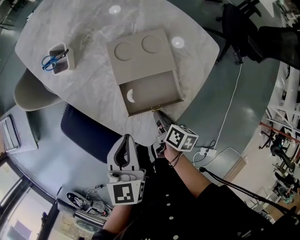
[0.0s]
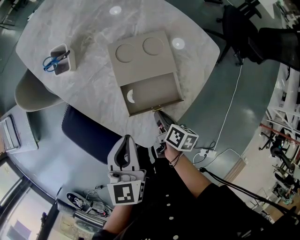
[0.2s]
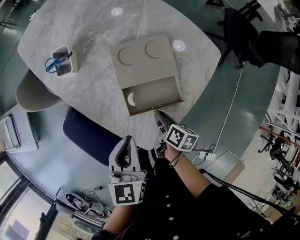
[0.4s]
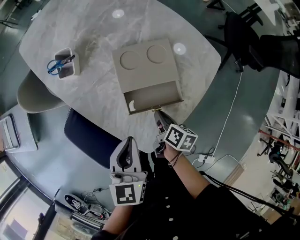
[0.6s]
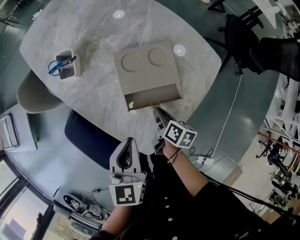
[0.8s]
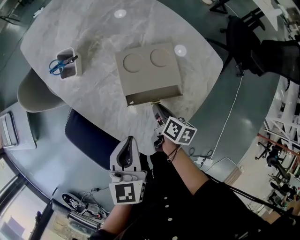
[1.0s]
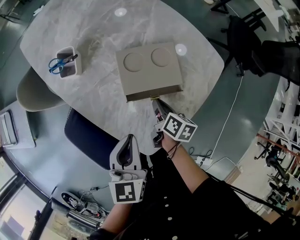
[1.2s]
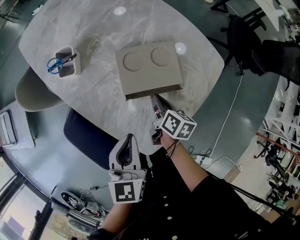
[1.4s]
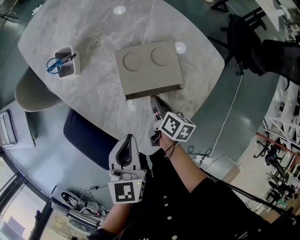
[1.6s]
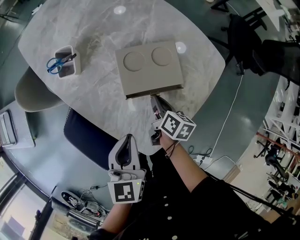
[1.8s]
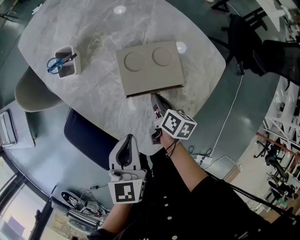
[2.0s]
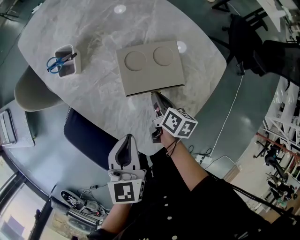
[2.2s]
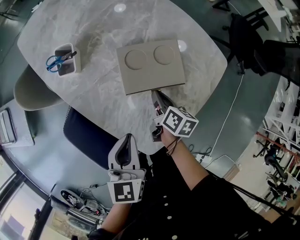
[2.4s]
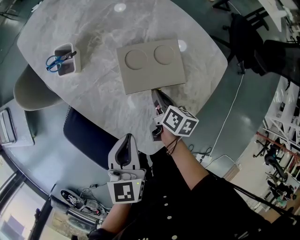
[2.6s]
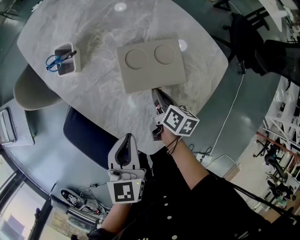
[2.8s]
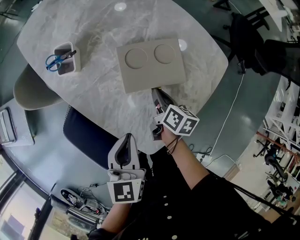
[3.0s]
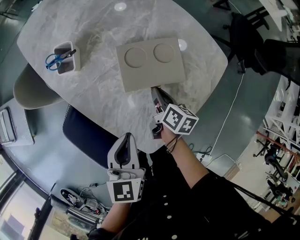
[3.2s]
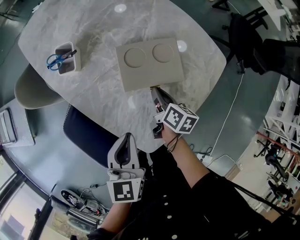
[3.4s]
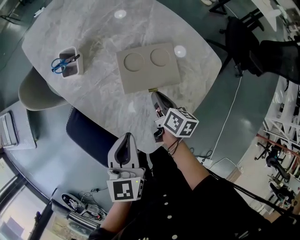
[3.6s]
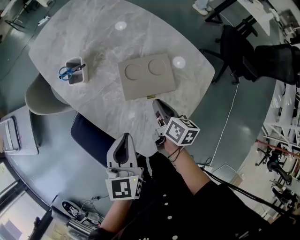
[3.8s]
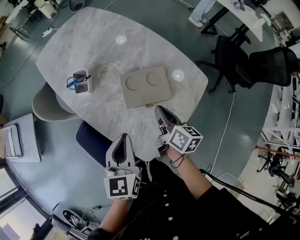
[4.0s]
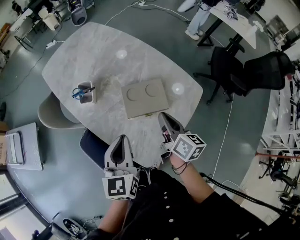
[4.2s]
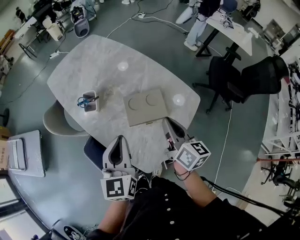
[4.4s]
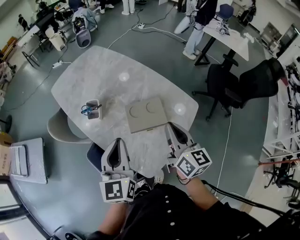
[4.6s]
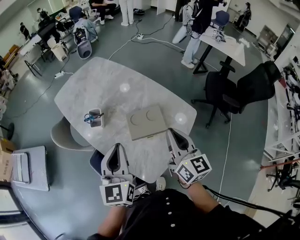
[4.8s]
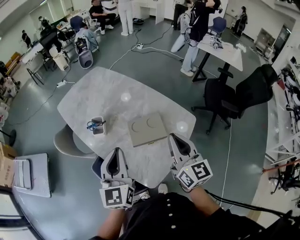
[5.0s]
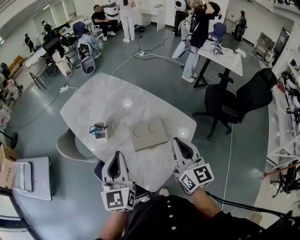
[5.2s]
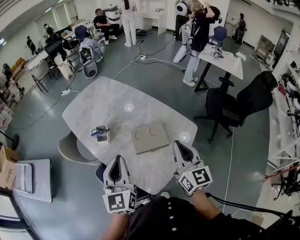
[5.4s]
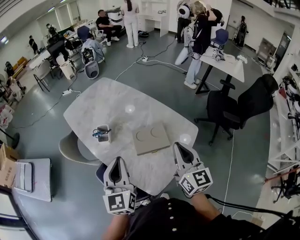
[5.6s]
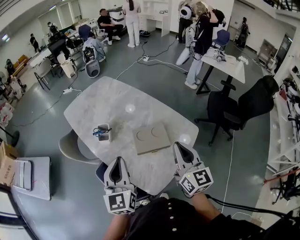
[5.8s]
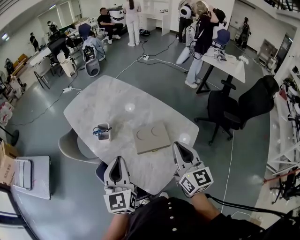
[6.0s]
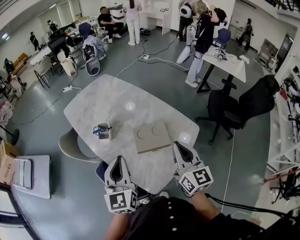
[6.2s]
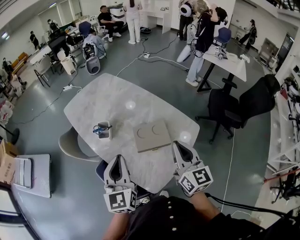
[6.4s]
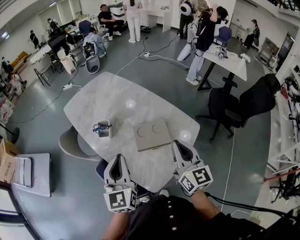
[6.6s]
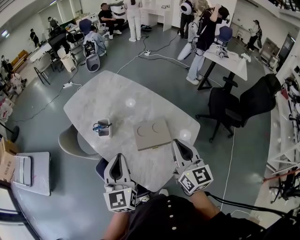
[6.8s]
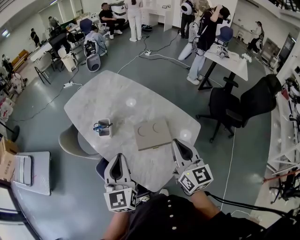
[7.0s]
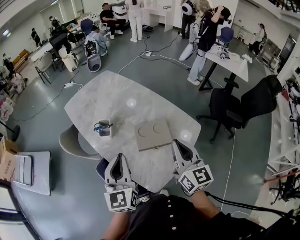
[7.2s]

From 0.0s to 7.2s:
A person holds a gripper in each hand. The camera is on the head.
From 0.0s to 1.4s: The right gripper heads forward, covering some 10 cm.
From 1.4s to 2.8s: The grippers move only a little.
From 2.8s to 4.4s: The left gripper travels upward by approximately 20 cm. Meanwhile the right gripper shifts roughly 30 cm upward, and turns by roughly 30 degrees.
From 4.4s to 5.8s: The left gripper moves upward, about 5 cm, while the right gripper is displaced upward and backward by about 15 cm, and swivels about 30 degrees.
From 5.8s to 7.2s: There are only small adjustments of the grippers.

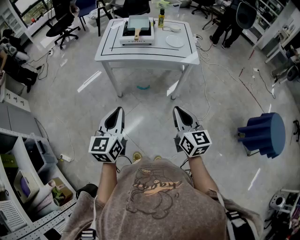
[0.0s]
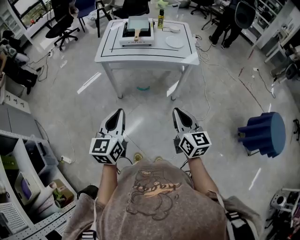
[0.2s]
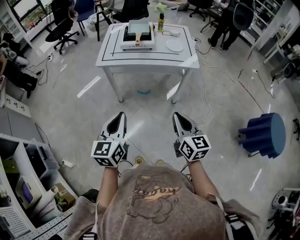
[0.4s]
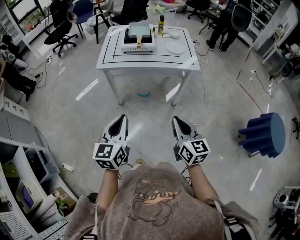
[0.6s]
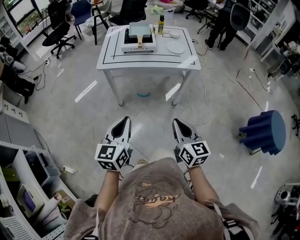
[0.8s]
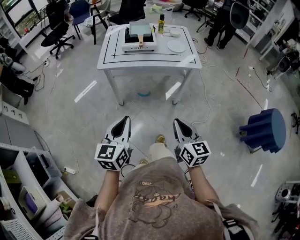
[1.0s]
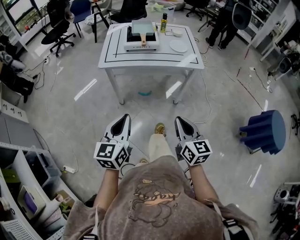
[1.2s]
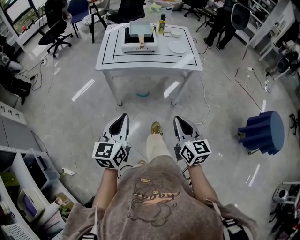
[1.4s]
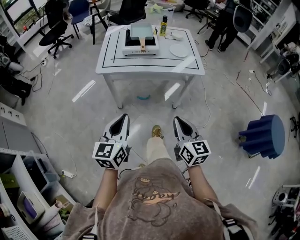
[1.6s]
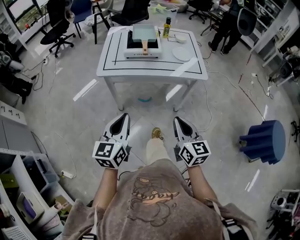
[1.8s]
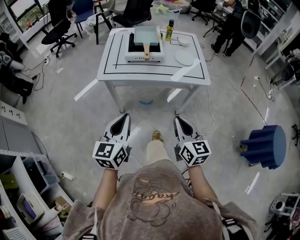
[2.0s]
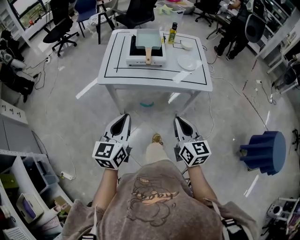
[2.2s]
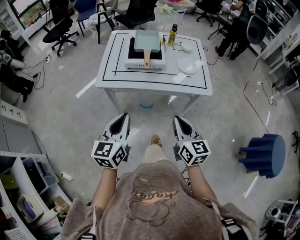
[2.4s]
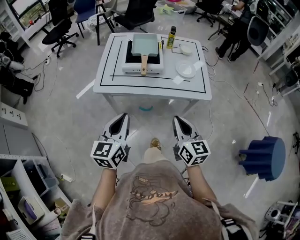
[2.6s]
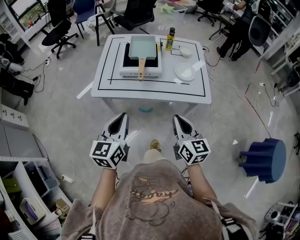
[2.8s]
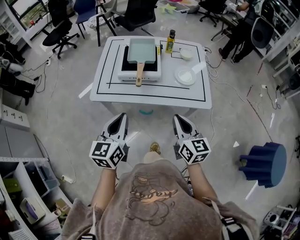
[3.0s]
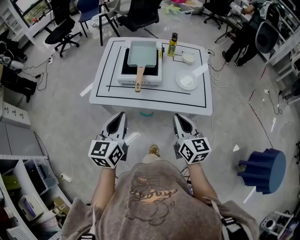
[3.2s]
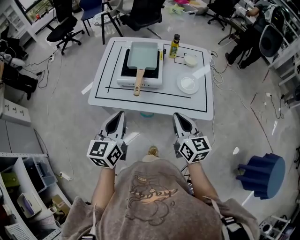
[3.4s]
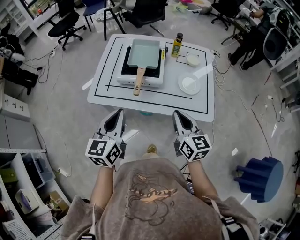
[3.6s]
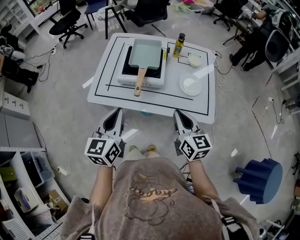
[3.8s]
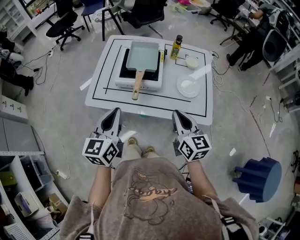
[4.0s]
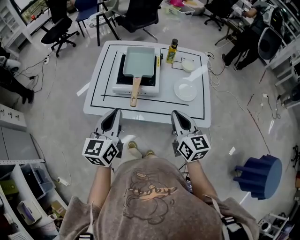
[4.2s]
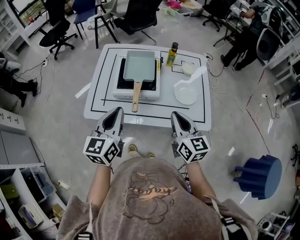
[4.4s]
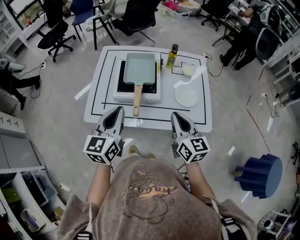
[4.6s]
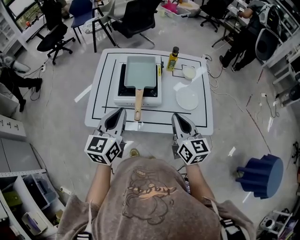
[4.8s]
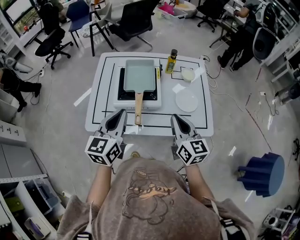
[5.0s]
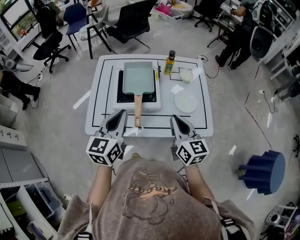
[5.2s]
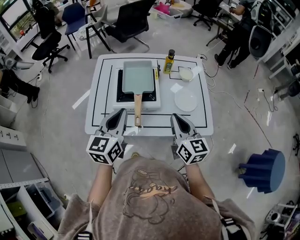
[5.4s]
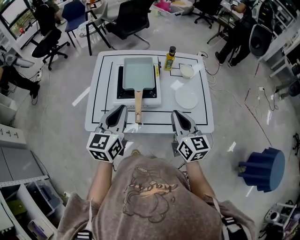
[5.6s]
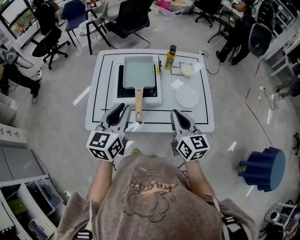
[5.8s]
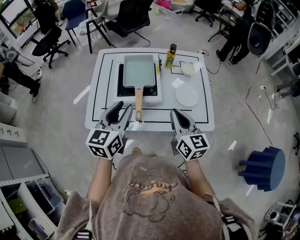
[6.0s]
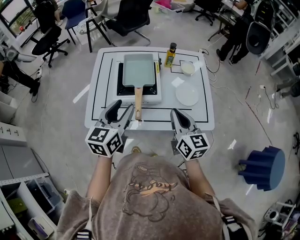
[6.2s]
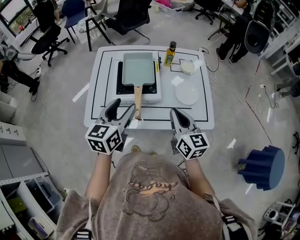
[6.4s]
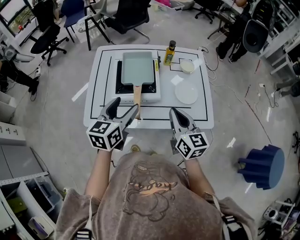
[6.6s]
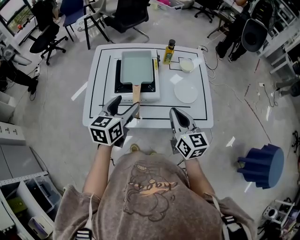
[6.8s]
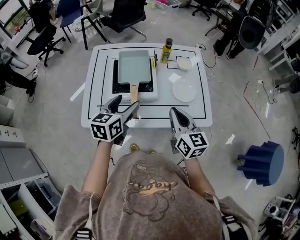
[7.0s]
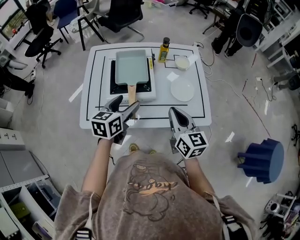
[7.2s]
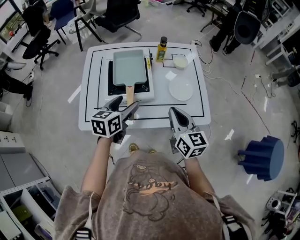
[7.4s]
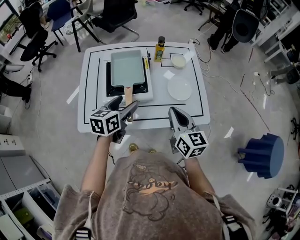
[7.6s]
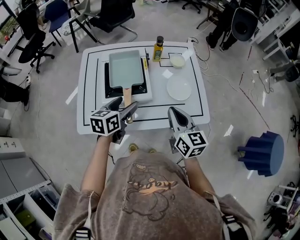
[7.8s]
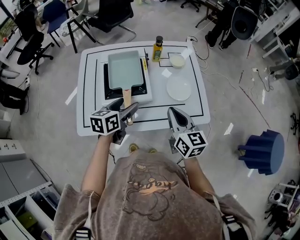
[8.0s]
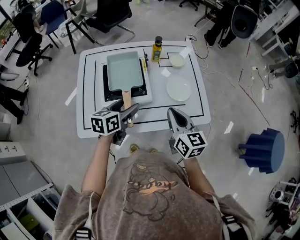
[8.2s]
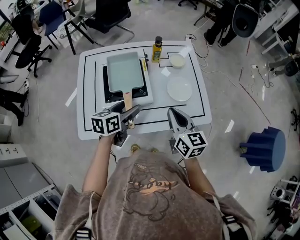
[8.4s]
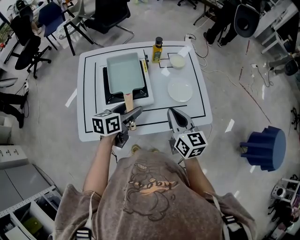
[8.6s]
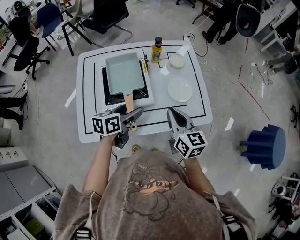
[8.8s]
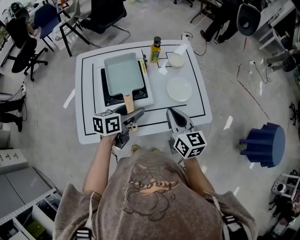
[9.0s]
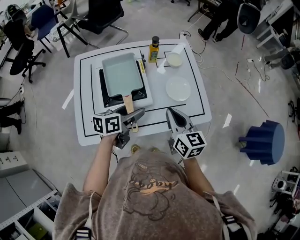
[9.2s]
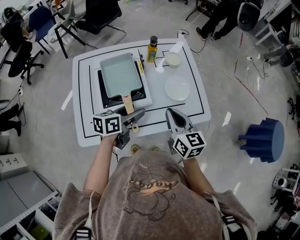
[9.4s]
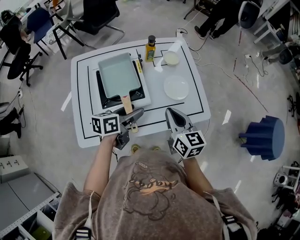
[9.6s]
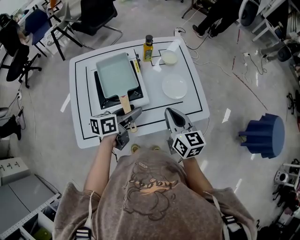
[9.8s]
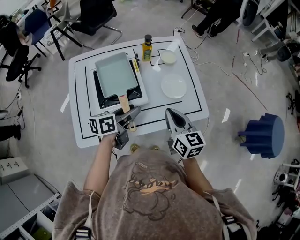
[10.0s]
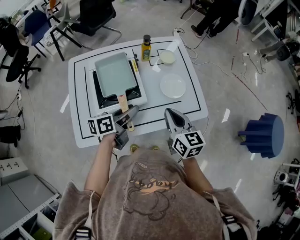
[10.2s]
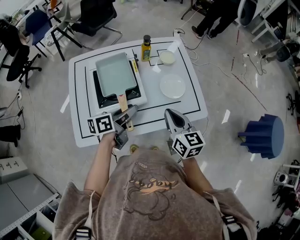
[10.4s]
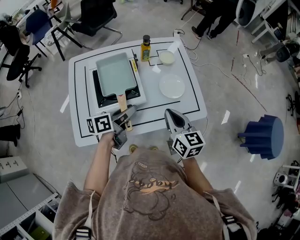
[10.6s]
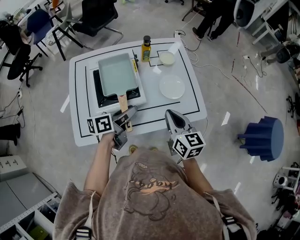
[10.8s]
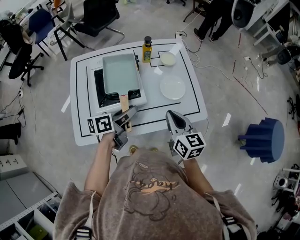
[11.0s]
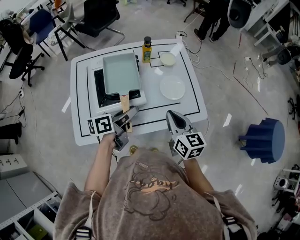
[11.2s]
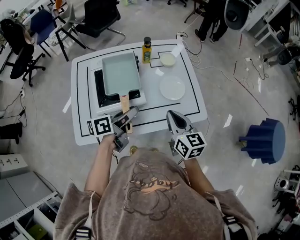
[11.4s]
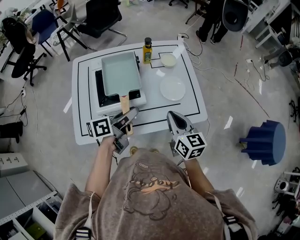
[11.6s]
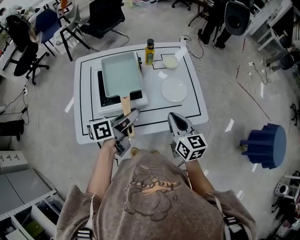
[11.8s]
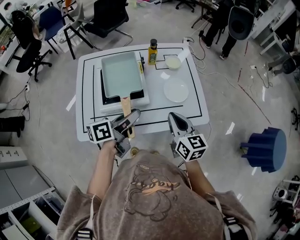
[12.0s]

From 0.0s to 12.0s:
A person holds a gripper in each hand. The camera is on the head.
From 0.0s to 1.6s: The right gripper goes approximately 10 cm to the left and forward. The left gripper goes roughly 5 cm forward.
From 1.6s to 3.0s: The grippers both shift forward by about 25 cm.
From 3.0s to 4.4s: Both grippers move forward, some 15 cm.
From 4.4s to 6.0s: The left gripper is displaced forward by roughly 5 cm, and opens its fingers.
From 6.0s to 7.6s: The left gripper heads downward and forward, covering approximately 10 cm, turns by some 20 degrees, and opens.
From 7.6s to 9.0s: The left gripper changes its angle by approximately 20 degrees.
From 9.0s to 10.4s: The left gripper closes its fingers.
From 10.4s to 12.0s: The left gripper goes some 5 cm upward.

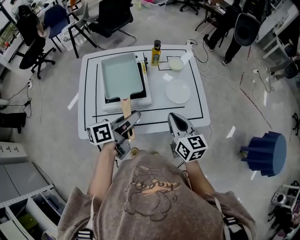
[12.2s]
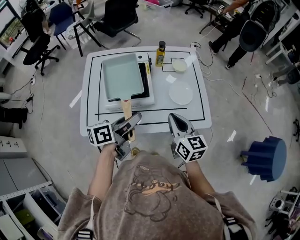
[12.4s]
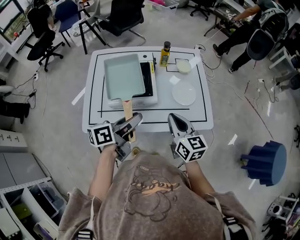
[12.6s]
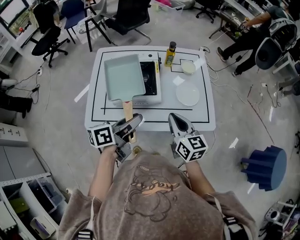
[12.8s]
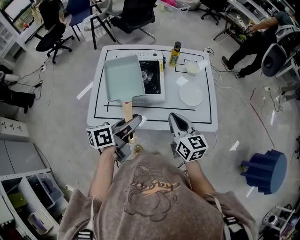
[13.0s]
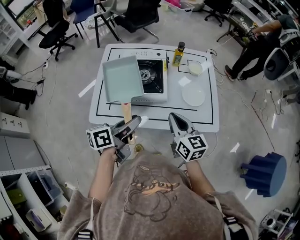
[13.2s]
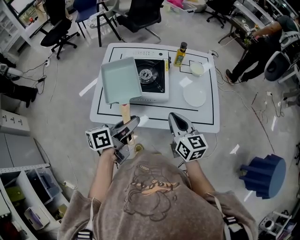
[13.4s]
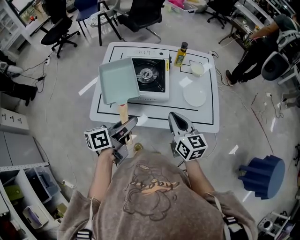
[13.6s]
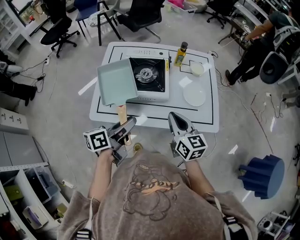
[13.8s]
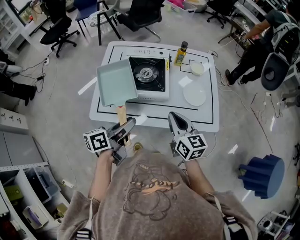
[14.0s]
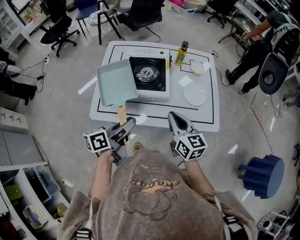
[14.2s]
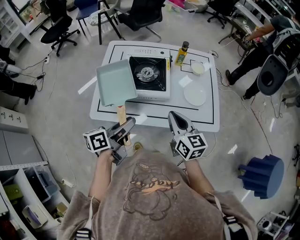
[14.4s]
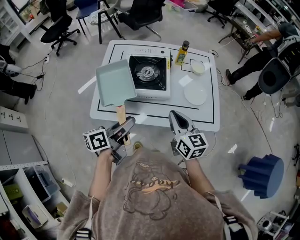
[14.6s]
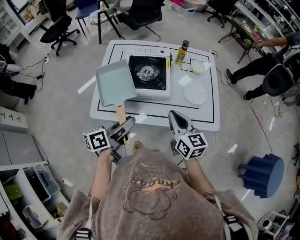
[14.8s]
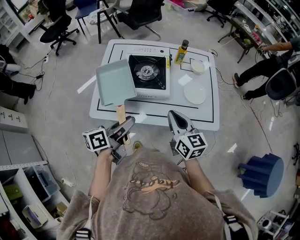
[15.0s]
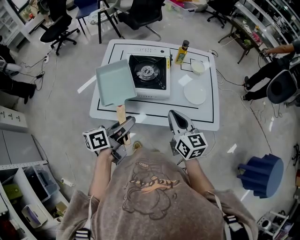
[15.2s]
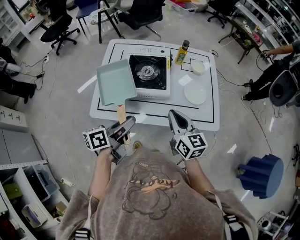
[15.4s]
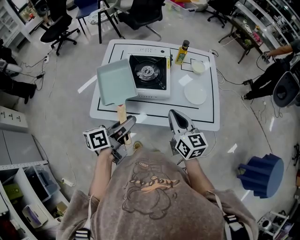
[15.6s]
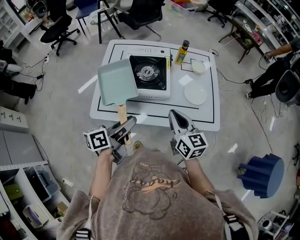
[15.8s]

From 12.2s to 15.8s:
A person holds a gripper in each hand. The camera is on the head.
From 12.2s to 14.0s: The right gripper goes about 5 cm to the left; the left gripper goes approximately 10 cm backward and to the left.
From 14.0s to 15.8s: The grippers move only a little.

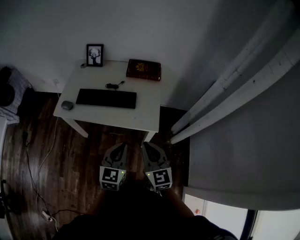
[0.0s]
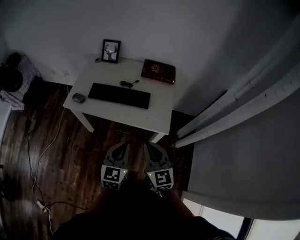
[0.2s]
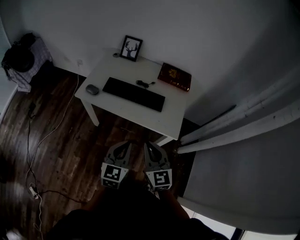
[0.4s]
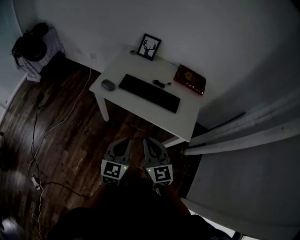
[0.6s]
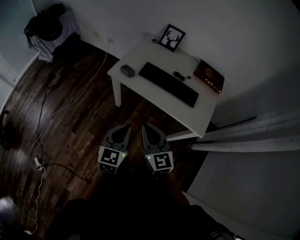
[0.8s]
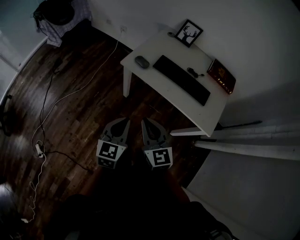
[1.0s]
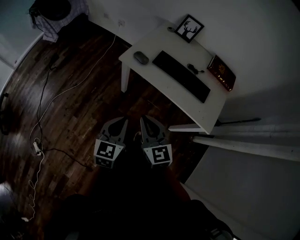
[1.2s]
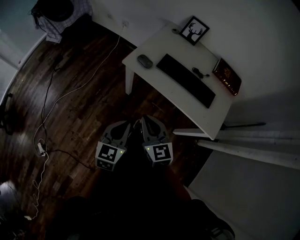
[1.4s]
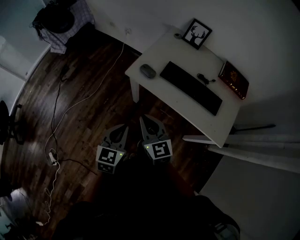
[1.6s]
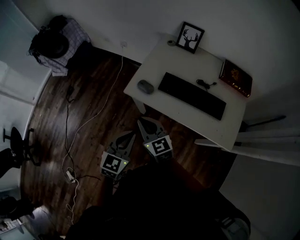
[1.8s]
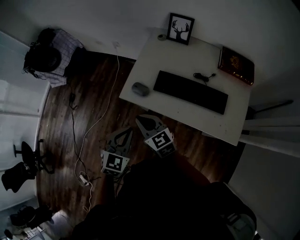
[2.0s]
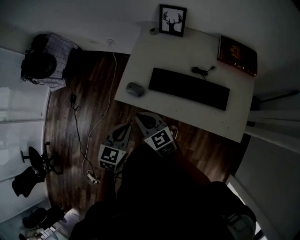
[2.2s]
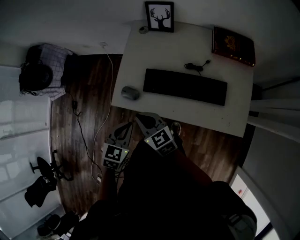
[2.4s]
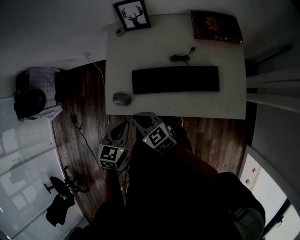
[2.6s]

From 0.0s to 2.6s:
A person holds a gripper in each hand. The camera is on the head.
From 0.0s to 1.2s: The two grippers go roughly 35 cm to the left. The right gripper turns by about 30 degrees; the left gripper swivels approximately 20 degrees.
From 1.2s to 2.6s: Both grippers move forward, approximately 30 cm. The right gripper rotates roughly 20 degrees; the left gripper changes its angle by some 40 degrees.
